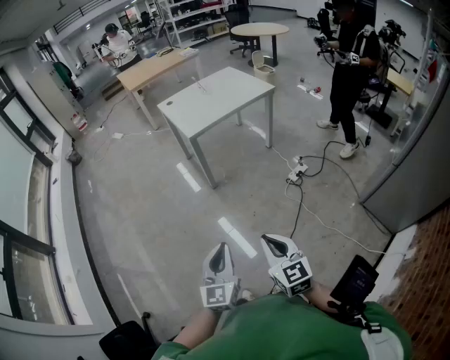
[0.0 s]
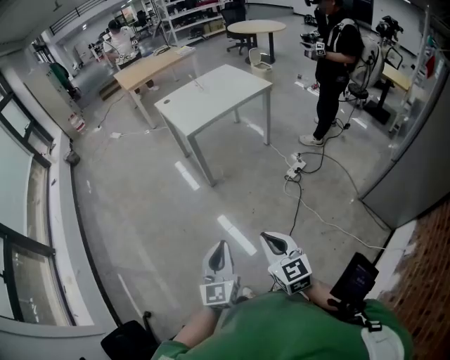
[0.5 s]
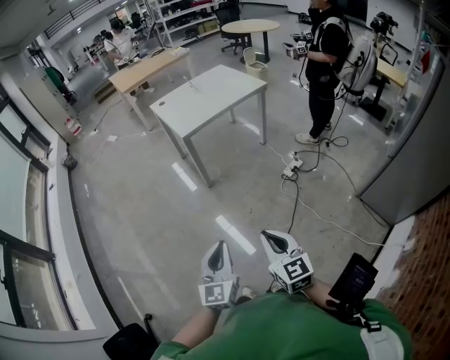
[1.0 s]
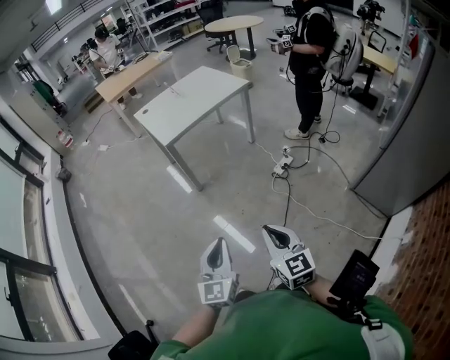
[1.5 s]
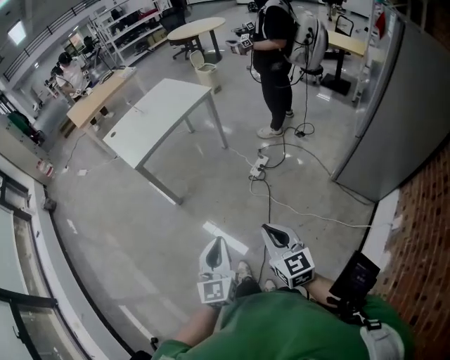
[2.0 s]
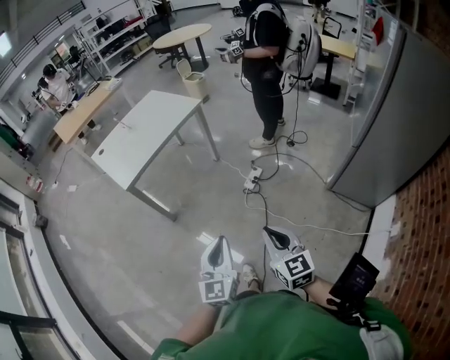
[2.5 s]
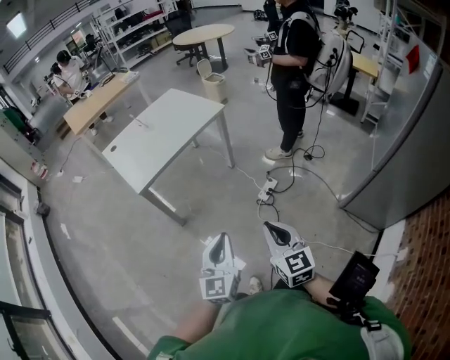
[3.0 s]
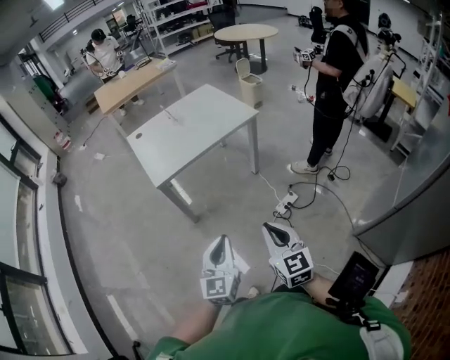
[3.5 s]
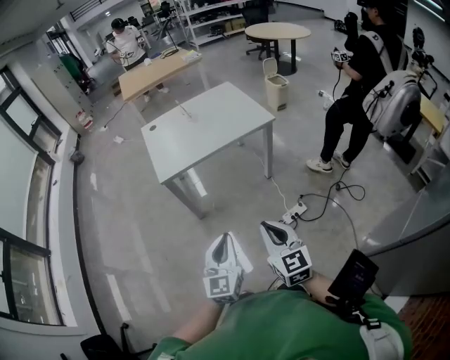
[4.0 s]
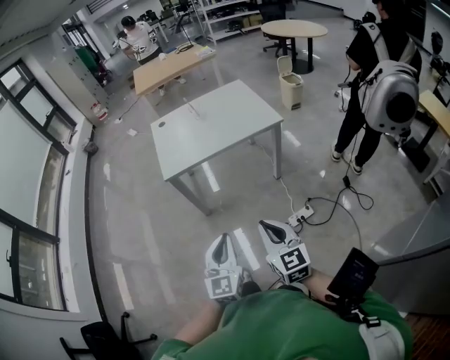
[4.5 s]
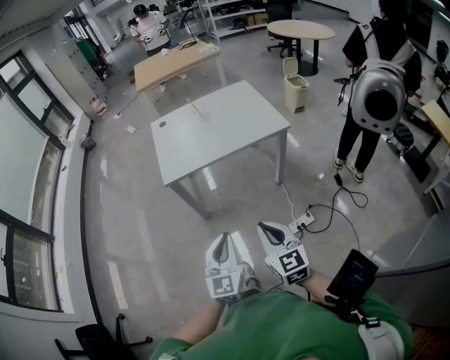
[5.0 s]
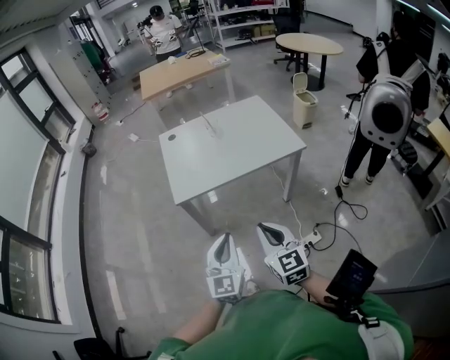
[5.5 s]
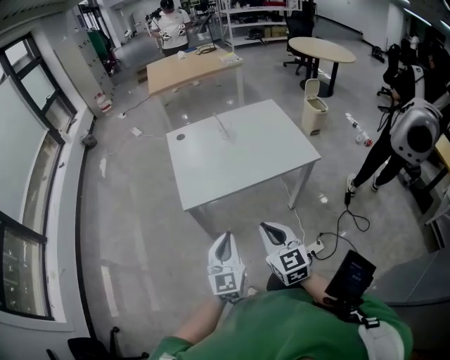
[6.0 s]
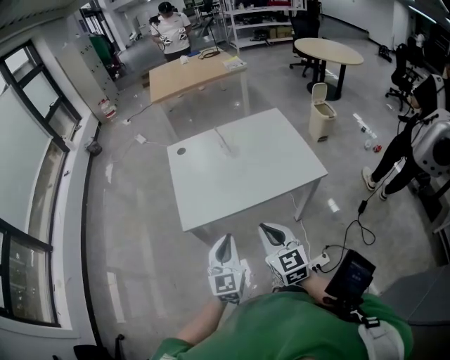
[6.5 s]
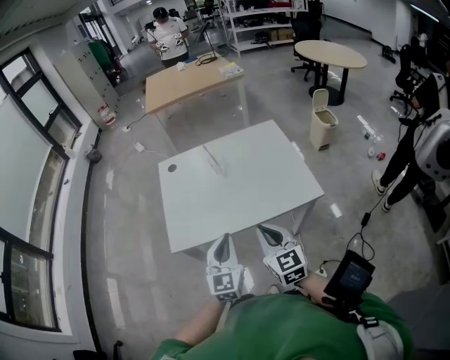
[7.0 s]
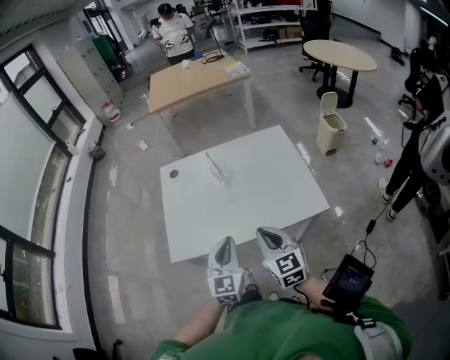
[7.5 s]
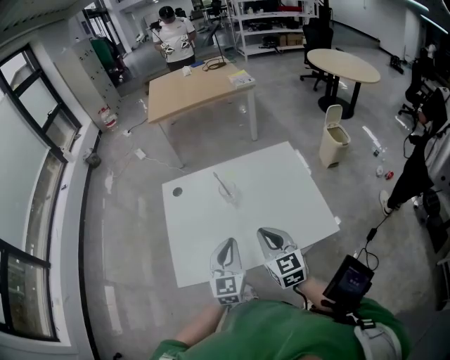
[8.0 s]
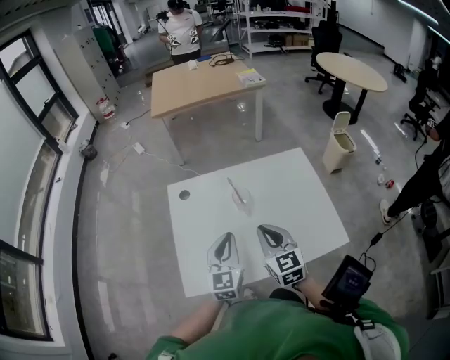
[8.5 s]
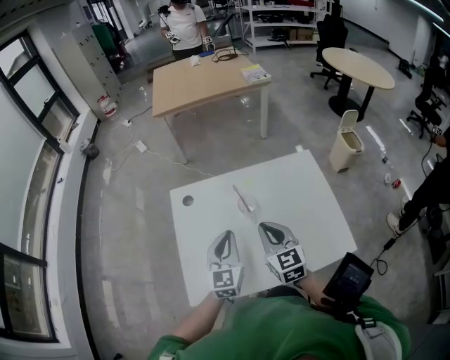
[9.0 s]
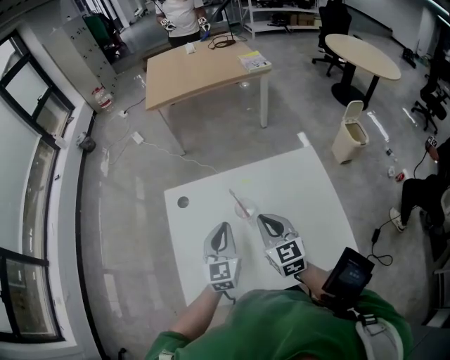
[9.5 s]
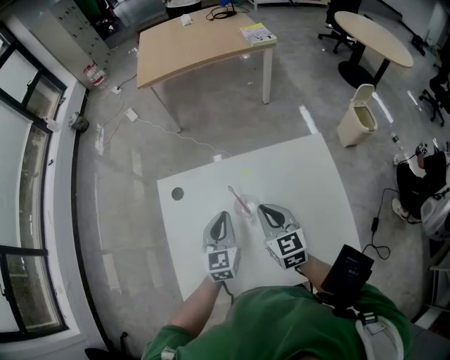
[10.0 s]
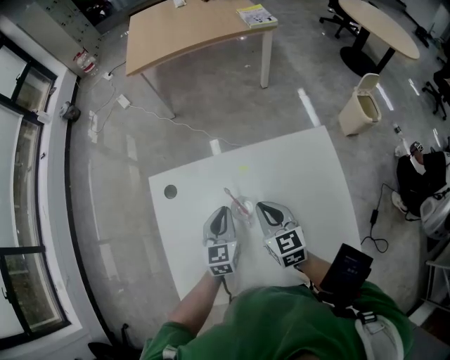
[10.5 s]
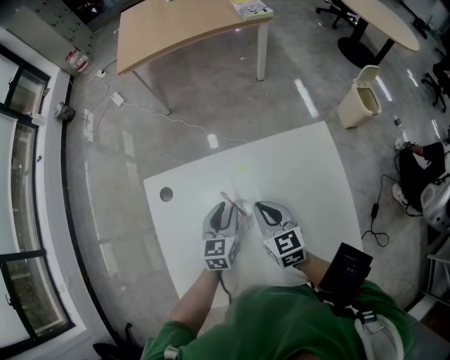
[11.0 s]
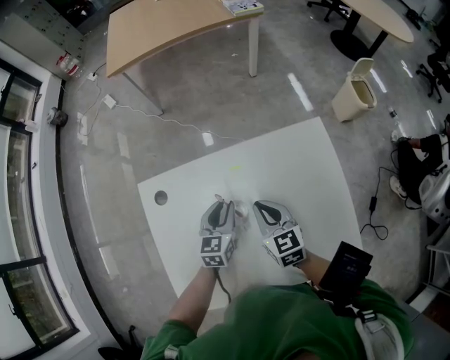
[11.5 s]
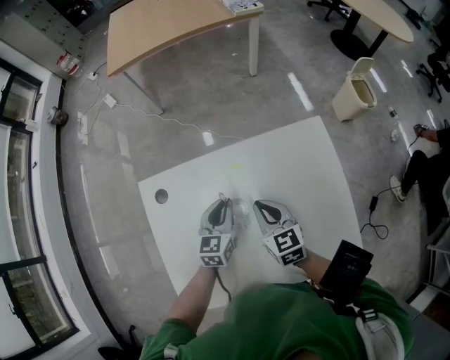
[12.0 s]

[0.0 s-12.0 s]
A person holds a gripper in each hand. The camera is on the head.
0.0 to 2.0 s: The grippers both shift to the right by roughly 20 cm.
2.0 to 4.0 s: The right gripper shifts by roughly 35 cm, and rotates roughly 20 degrees, while the left gripper shifts by some 30 cm, and swivels some 20 degrees.
4.0 to 6.0 s: The two grippers go roughly 25 cm forward.
6.0 to 8.0 s: Both grippers travel together forward, roughly 35 cm.
8.0 to 10.0 s: The grippers both shift forward by approximately 25 cm.
10.0 to 12.0 s: The right gripper moves downward, roughly 5 cm, while the left gripper travels downward and forward by approximately 10 cm, and opens and closes again.

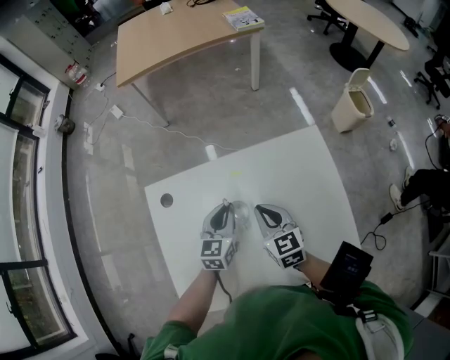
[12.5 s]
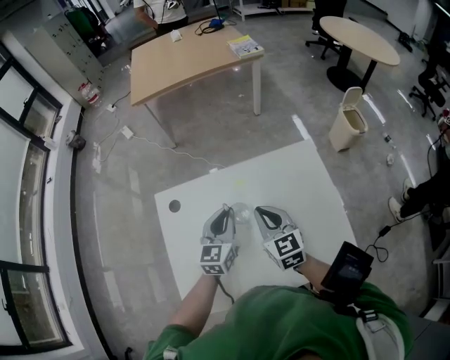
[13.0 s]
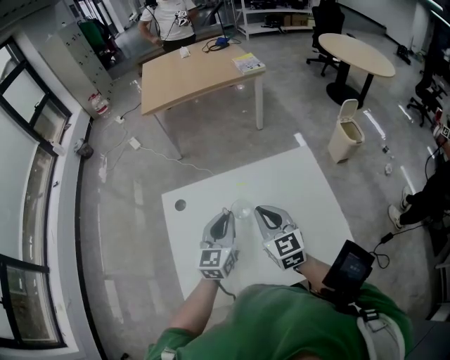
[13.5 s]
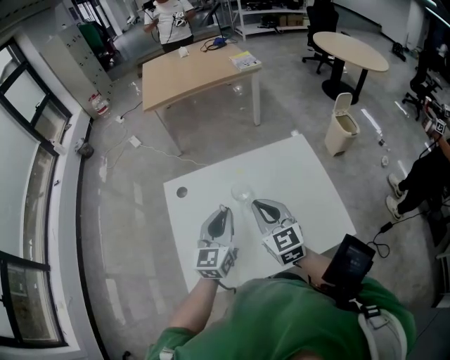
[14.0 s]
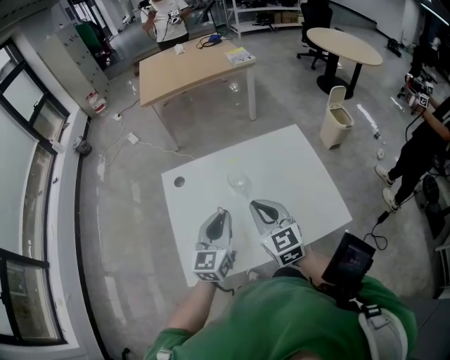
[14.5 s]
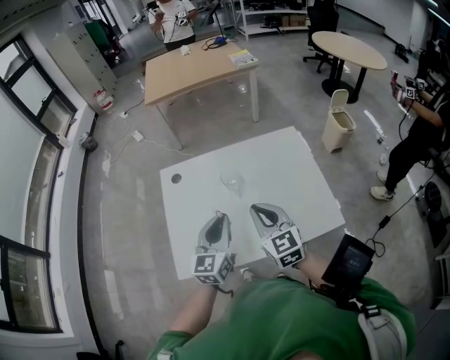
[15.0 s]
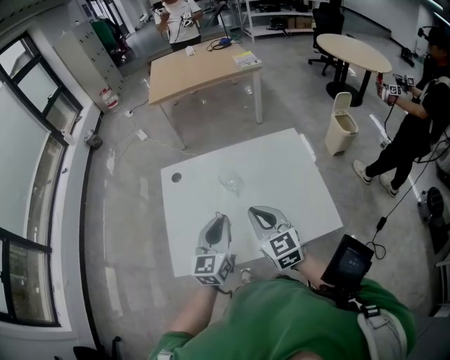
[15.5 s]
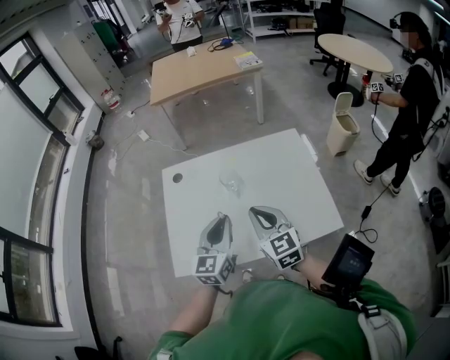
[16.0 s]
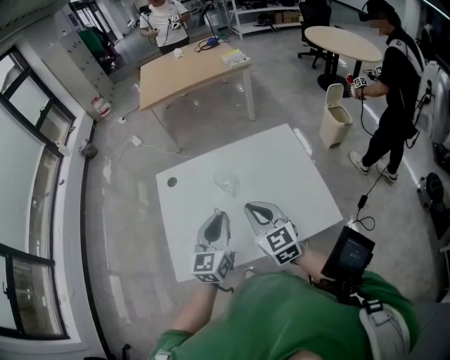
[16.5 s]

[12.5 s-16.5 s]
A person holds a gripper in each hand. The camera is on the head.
12.5 to 14.5 s: The grippers both shift backward and upward by about 25 cm.
14.5 to 16.5 s: The left gripper moves about 5 cm.

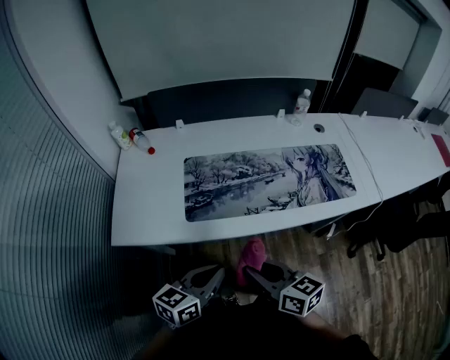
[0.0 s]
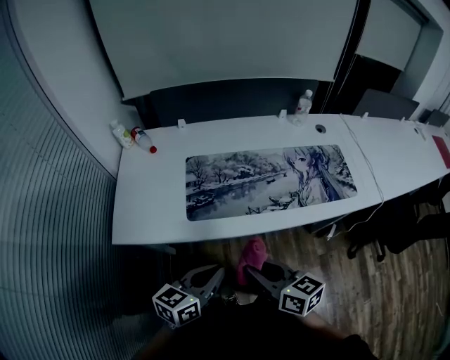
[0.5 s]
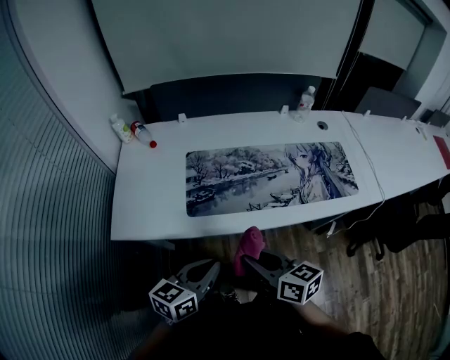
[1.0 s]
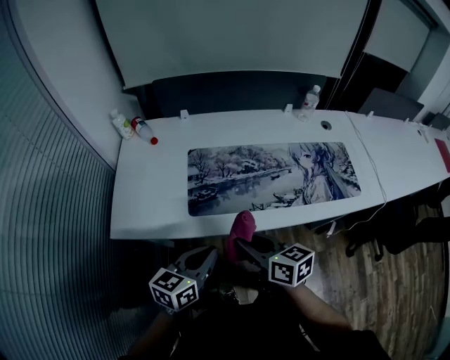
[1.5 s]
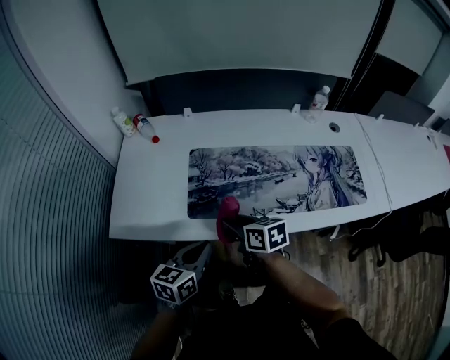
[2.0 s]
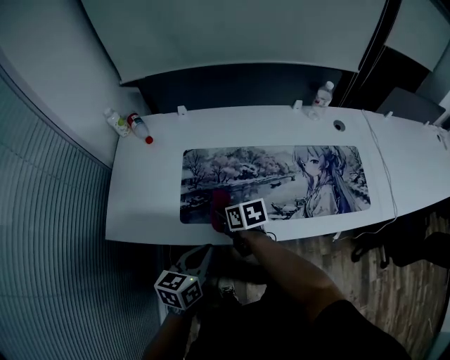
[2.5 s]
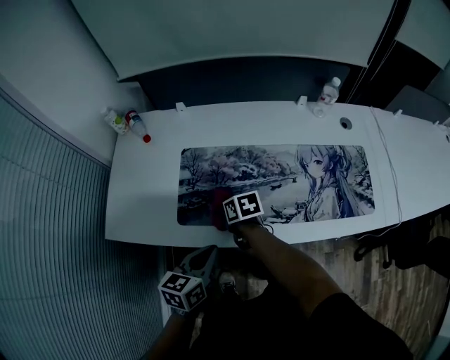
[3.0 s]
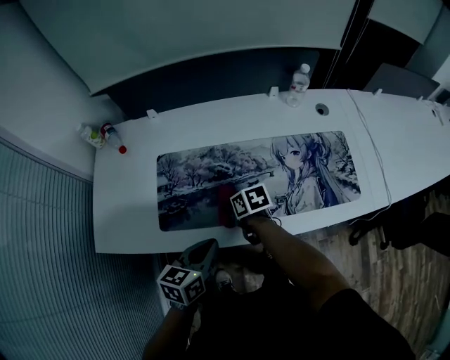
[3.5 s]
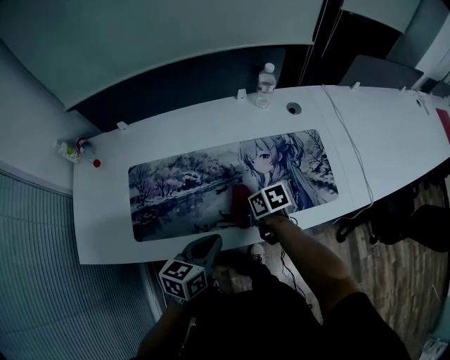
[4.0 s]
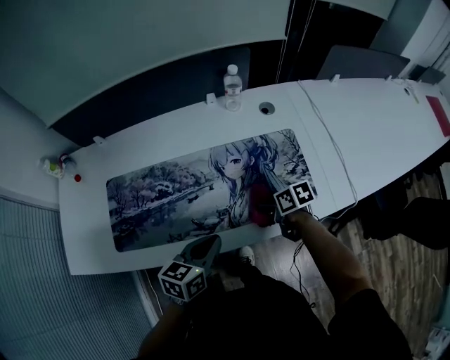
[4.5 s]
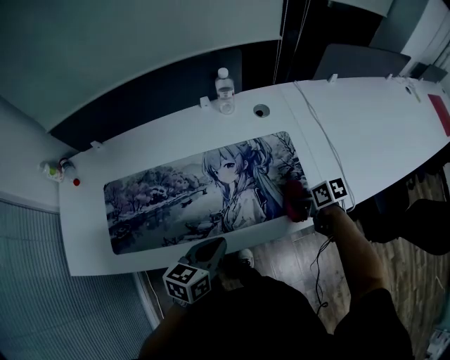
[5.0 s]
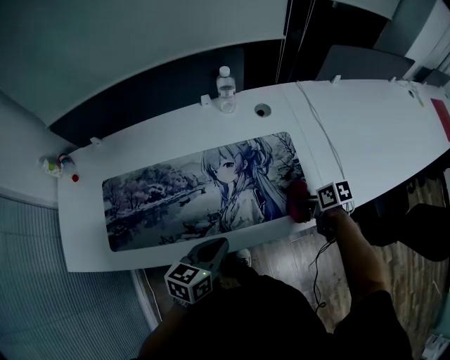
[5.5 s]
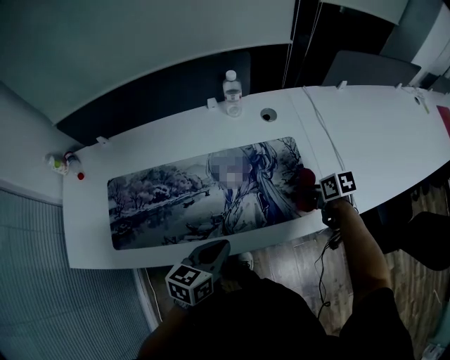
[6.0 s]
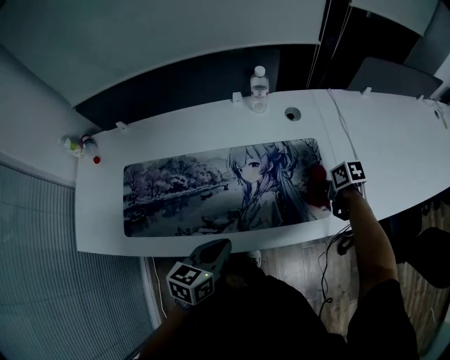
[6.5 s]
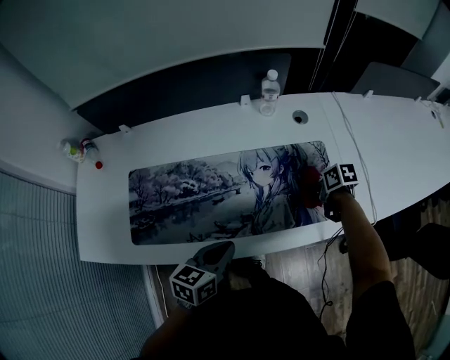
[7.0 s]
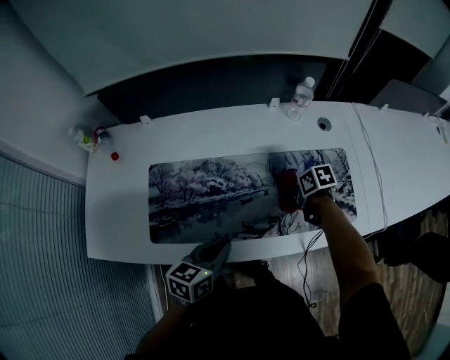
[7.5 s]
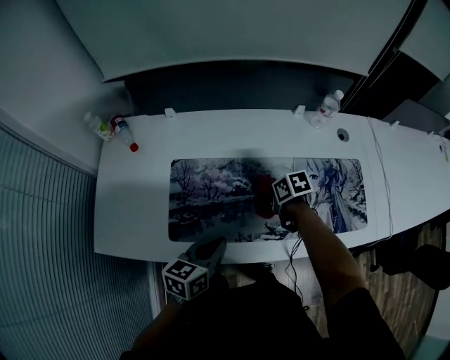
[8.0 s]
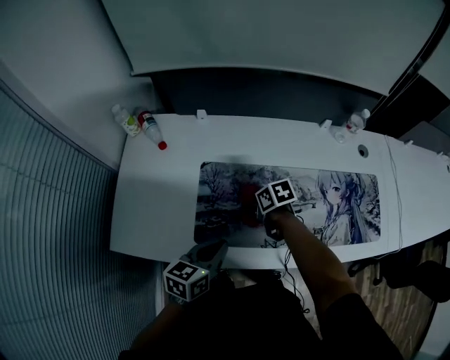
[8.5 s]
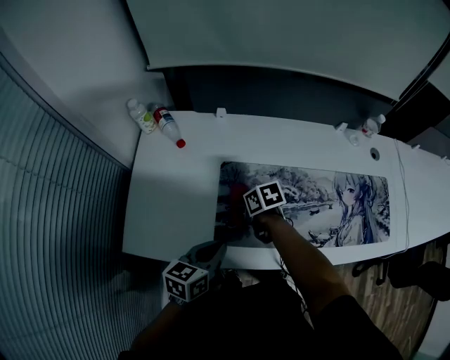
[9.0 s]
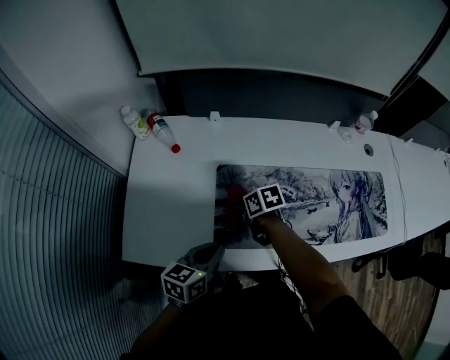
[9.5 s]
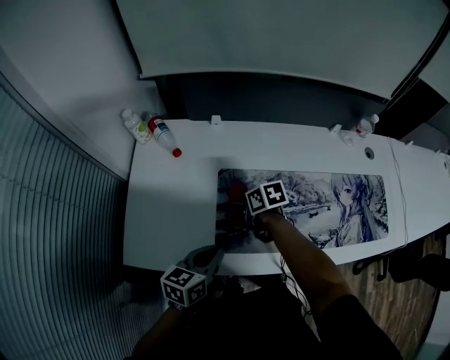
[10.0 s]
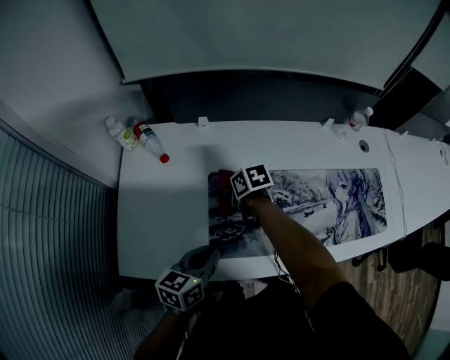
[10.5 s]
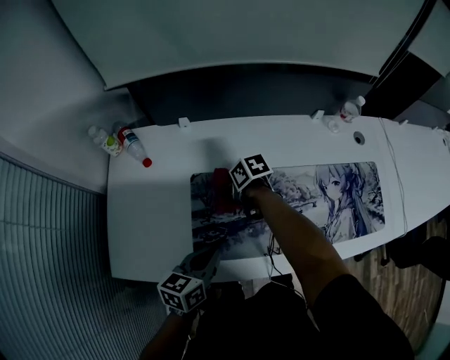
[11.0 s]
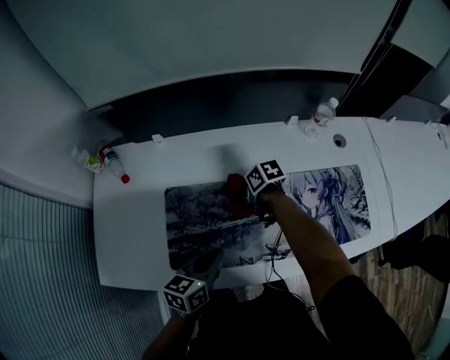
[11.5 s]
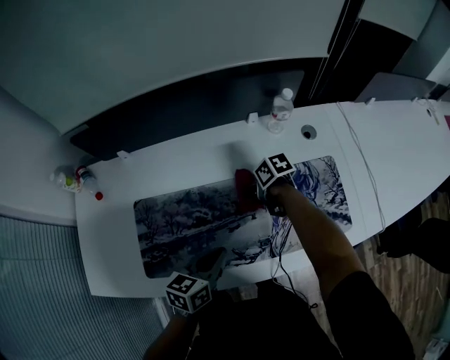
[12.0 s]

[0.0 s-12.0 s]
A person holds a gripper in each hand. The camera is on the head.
0.0 to 2.0 s: The left gripper travels forward by some 10 cm; the right gripper travels forward and downward by approximately 20 cm.
2.0 to 4.0 s: The two grippers go some 25 cm to the right. The right gripper rotates roughly 20 degrees.
4.0 to 6.0 s: The right gripper goes some 35 cm to the right. Meanwhile the left gripper travels to the right by approximately 15 cm.
6.0 to 8.0 s: The left gripper heads to the left, covering roughly 25 cm, while the right gripper is displaced to the left by approximately 40 cm.
8.0 to 10.0 s: The right gripper shifts about 25 cm to the left; the left gripper is displaced to the left by some 15 cm.
10.0 to 12.0 s: Both grippers travel together to the right, about 35 cm.
